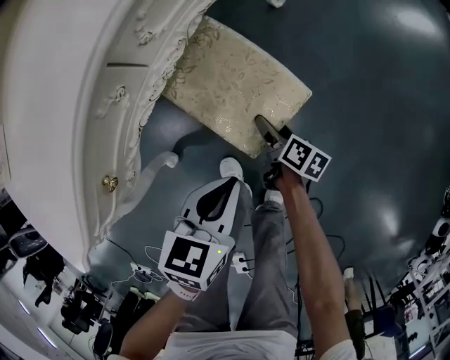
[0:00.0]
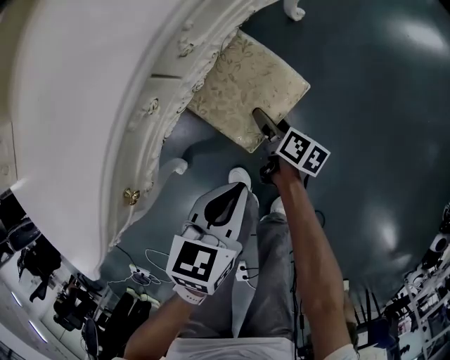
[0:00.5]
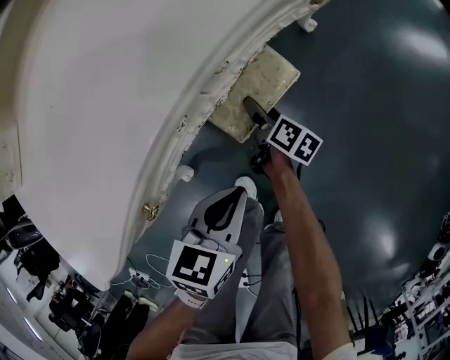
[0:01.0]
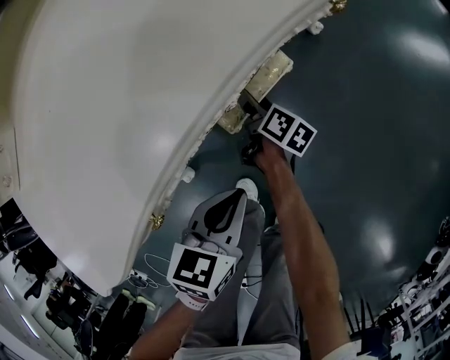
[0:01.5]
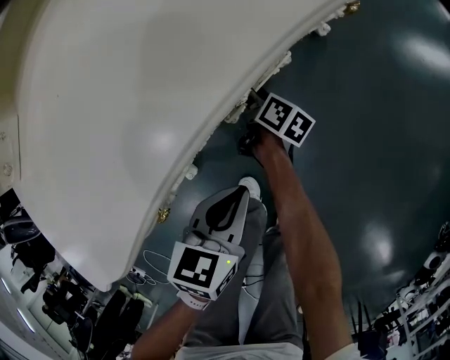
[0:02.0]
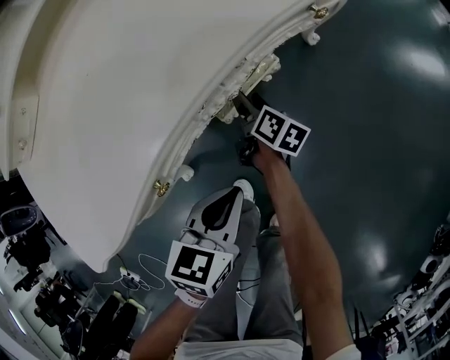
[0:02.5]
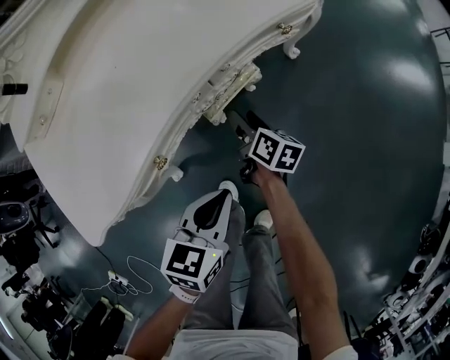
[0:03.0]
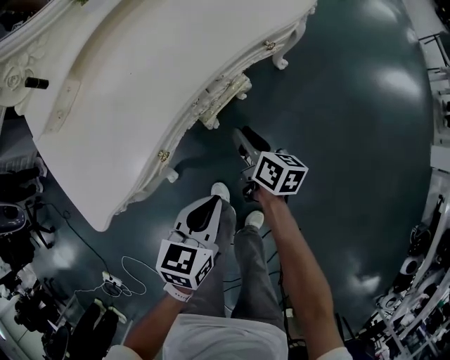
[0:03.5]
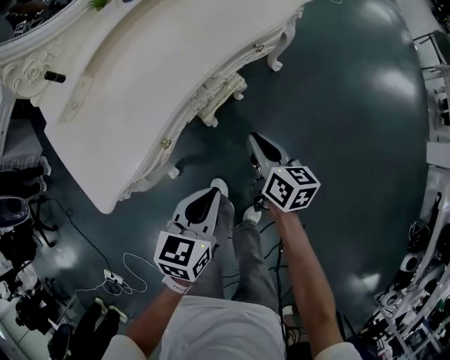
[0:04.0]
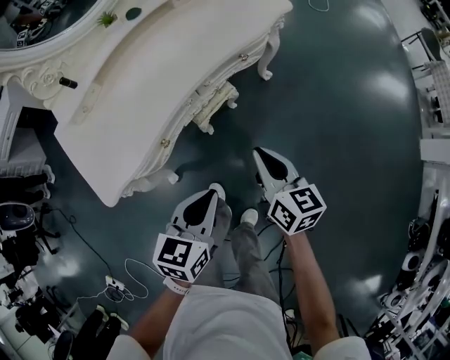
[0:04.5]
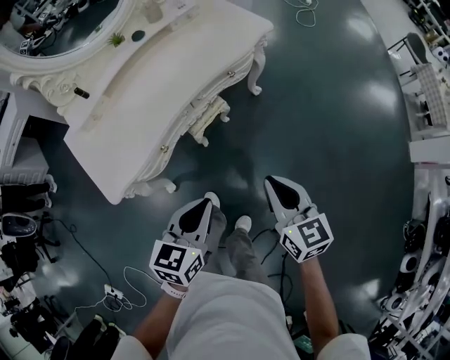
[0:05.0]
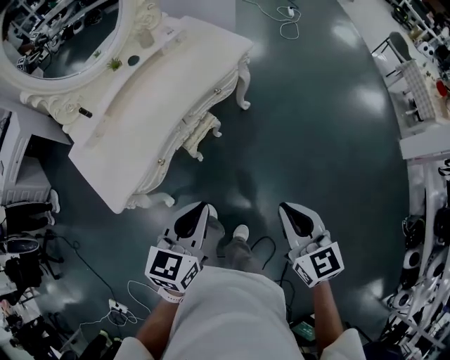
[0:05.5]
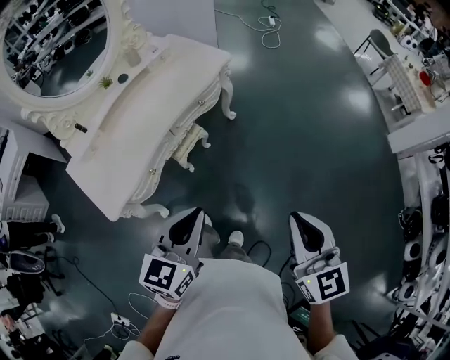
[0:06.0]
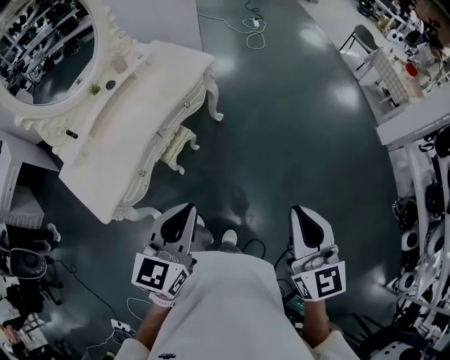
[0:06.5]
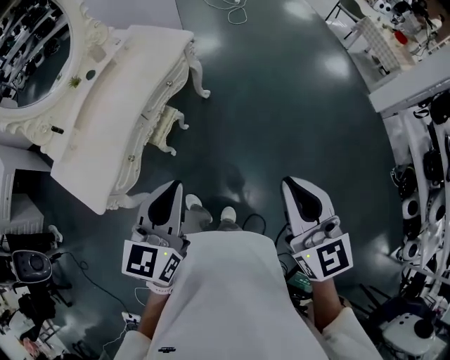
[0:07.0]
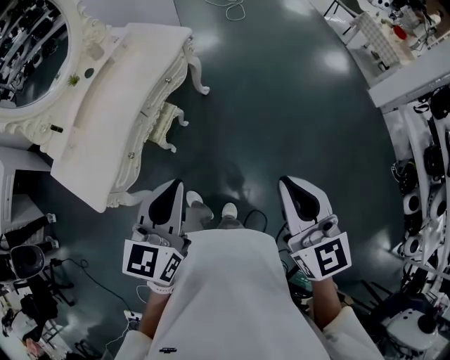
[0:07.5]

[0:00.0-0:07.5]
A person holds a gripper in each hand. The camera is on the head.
0.0 to 2.0 s: The right gripper travels to the left and forward by some 25 cm, while the left gripper shifts approximately 10 cm to the left.
2.0 to 4.0 s: The left gripper goes about 25 cm upward and backward. Meanwhile the right gripper moves upward and backward, some 40 cm, rotates about 30 degrees, and closes its fingers.
4.0 to 5.5 s: The left gripper goes approximately 20 cm upward; the right gripper heads upward, backward and to the right, covering roughly 40 cm, and rotates about 40 degrees.
5.5 to 7.5 s: The right gripper heads upward, to the right and backward, covering about 15 cm, while the left gripper goes some 10 cm upward and to the right.

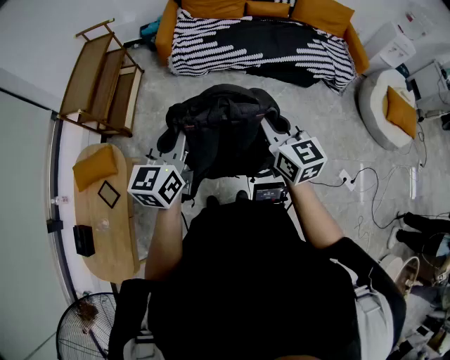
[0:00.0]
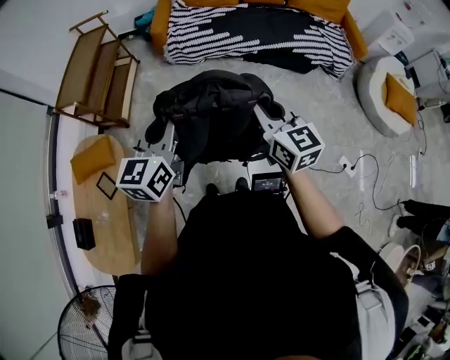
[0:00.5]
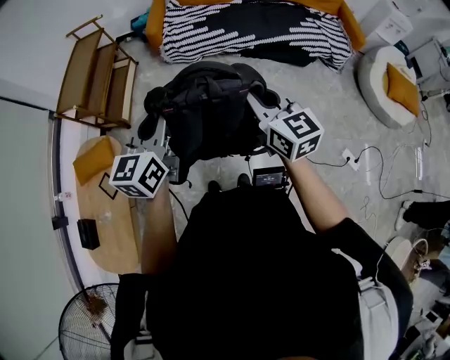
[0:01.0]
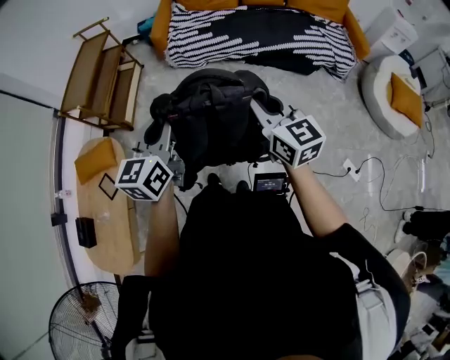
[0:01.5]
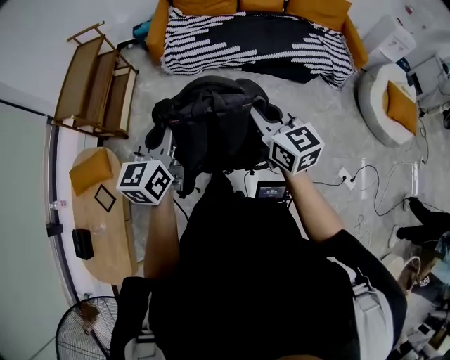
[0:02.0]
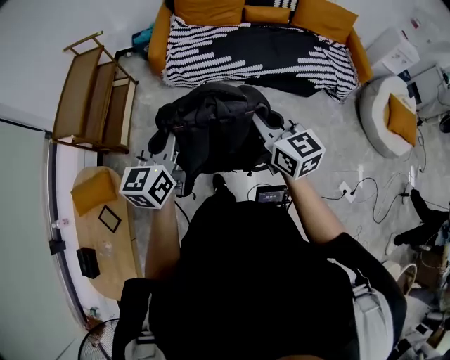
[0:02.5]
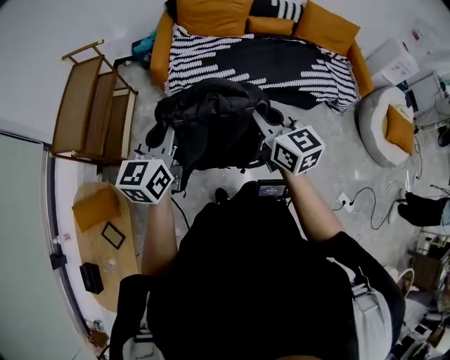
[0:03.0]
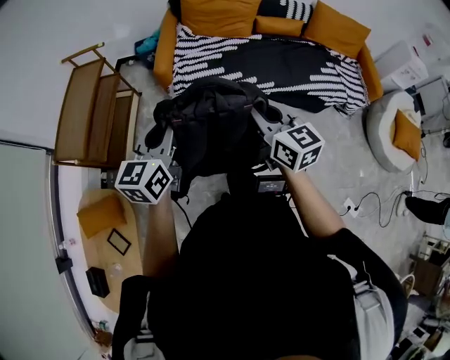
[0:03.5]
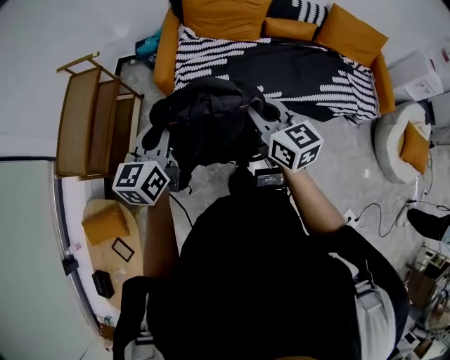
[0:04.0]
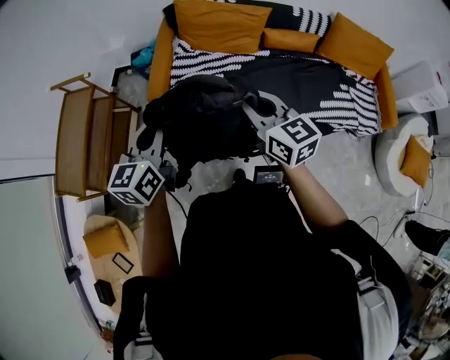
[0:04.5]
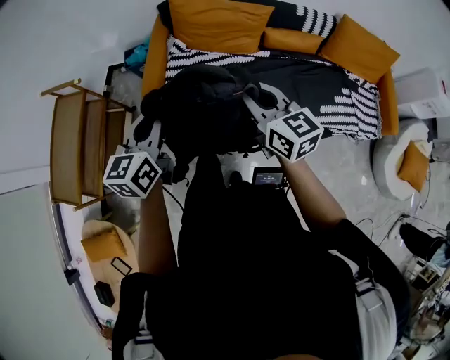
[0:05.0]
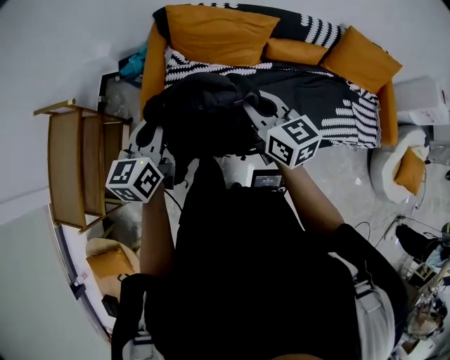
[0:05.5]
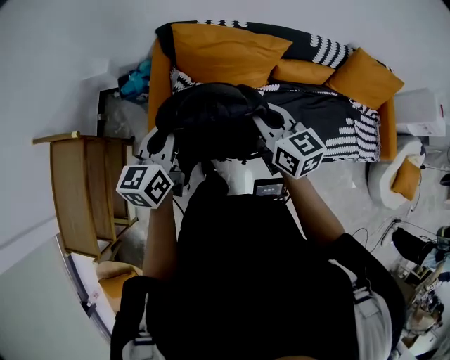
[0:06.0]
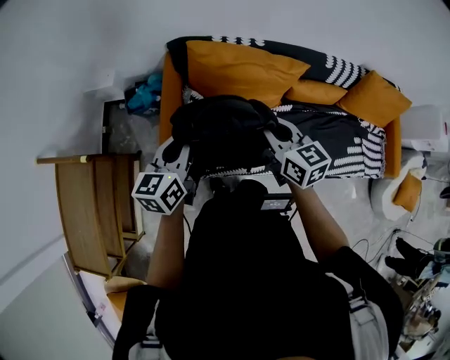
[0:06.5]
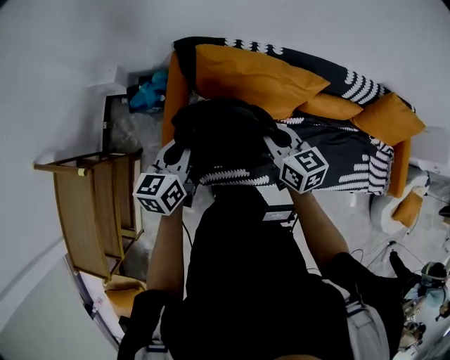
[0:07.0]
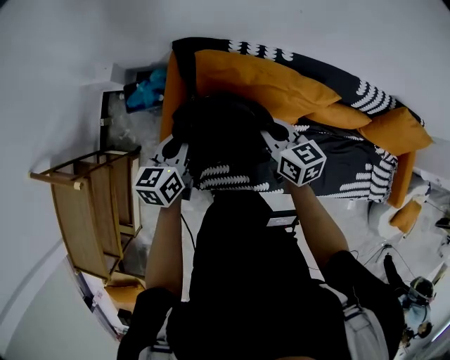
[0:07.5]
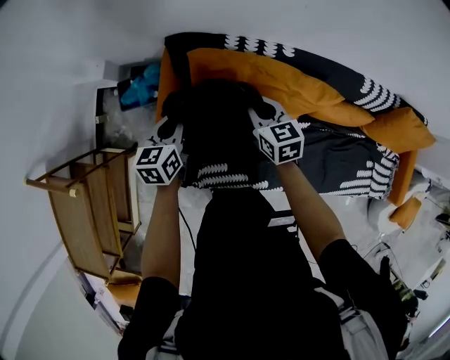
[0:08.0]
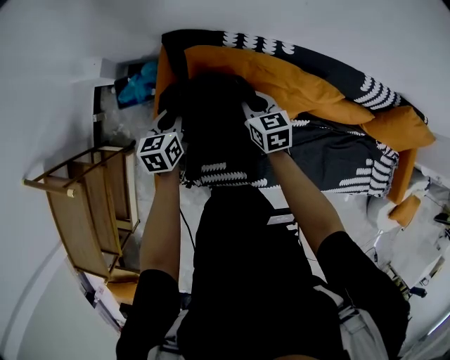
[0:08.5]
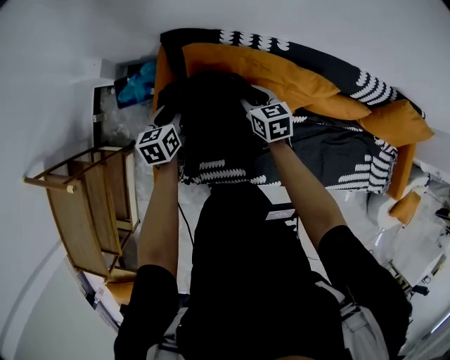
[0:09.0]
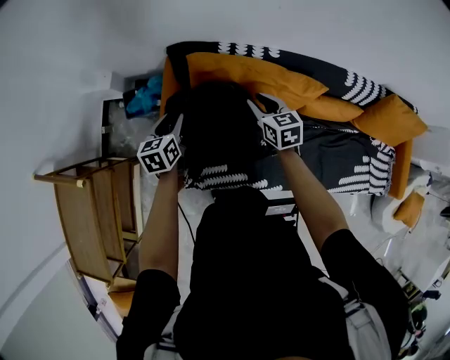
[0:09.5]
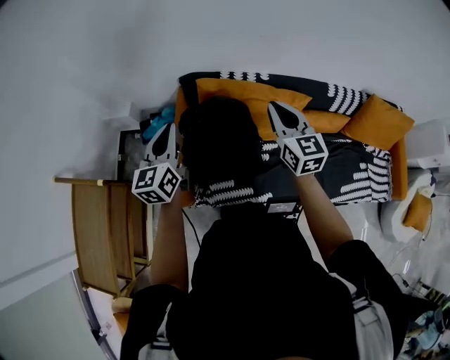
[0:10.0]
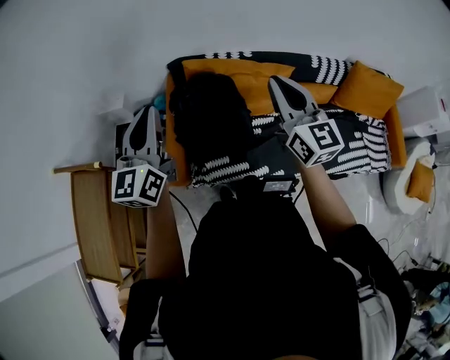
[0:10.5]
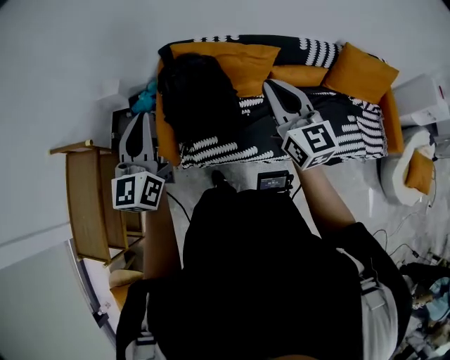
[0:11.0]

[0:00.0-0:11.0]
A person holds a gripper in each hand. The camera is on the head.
0.0 to 2.0 s: There are only small adjustments of the grippers.
2.0 to 3.5 s: Both grippers move forward, approximately 25 cm.
3.5 to 5.5 s: The pair of grippers is taken forward, approximately 40 cm.
5.5 to 7.5 s: Both grippers travel together forward and downward, some 40 cm.
7.5 to 9.0 s: The grippers both shift downward and forward by about 15 cm. The left gripper opens its fingers; the right gripper opens.
9.0 to 11.0 s: Both grippers move upward and backward, some 50 cm. The right gripper tilts its fingers approximately 40 degrees upward, and closes. The left gripper points its fingers roughly 40 degrees further upward, and closes up.

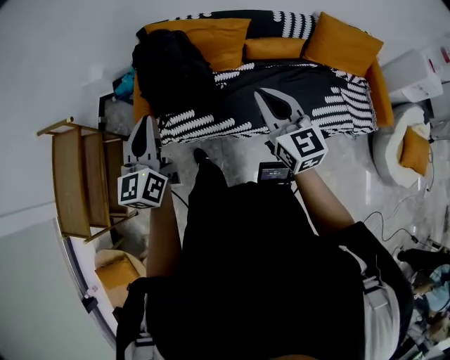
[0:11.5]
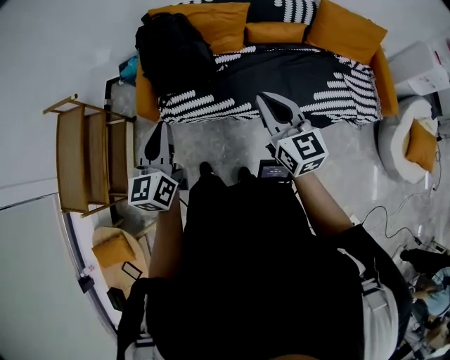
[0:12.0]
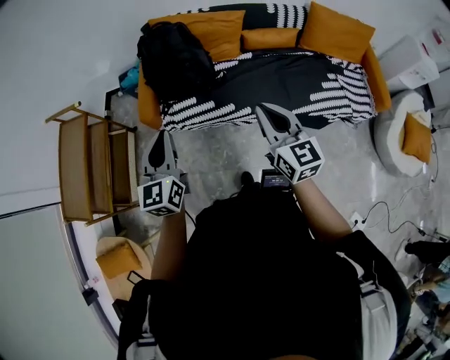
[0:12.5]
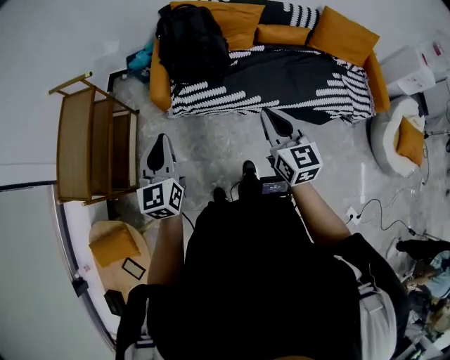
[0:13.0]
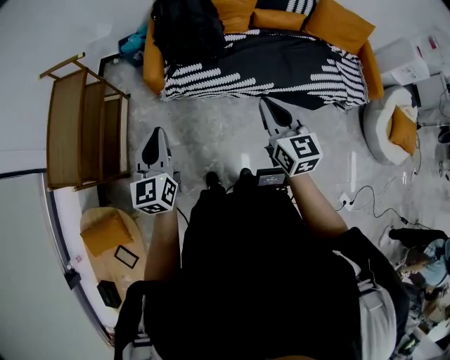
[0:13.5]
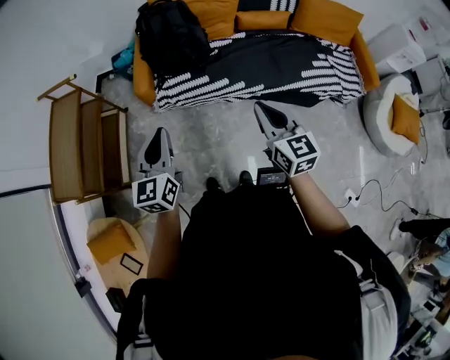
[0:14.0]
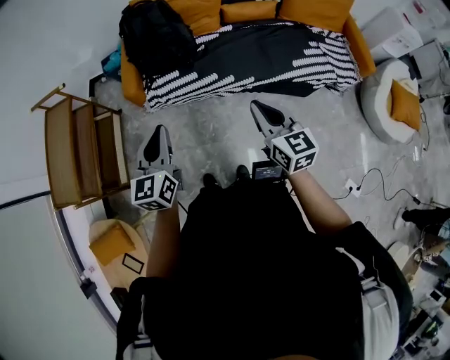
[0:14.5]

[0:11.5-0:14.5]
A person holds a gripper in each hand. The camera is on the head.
11.5 to 13.0 s: Both grippers move backward and to the left, some 25 cm.
13.0 to 14.5 s: The left gripper goes some 10 cm to the right, while the right gripper moves to the right and backward, approximately 10 cm.

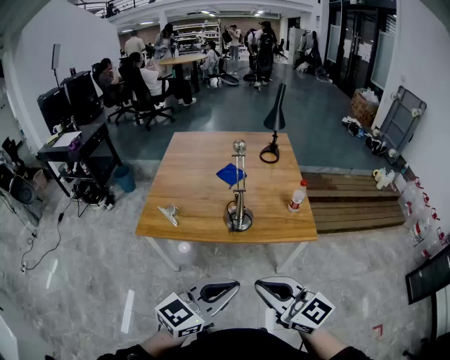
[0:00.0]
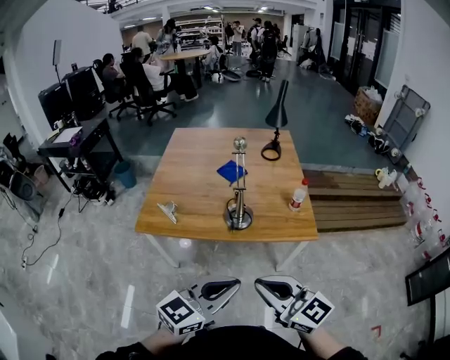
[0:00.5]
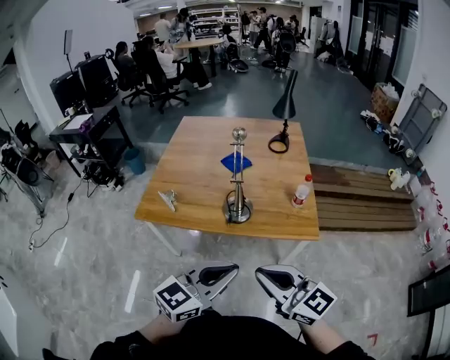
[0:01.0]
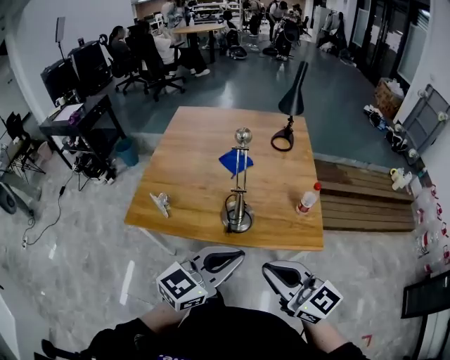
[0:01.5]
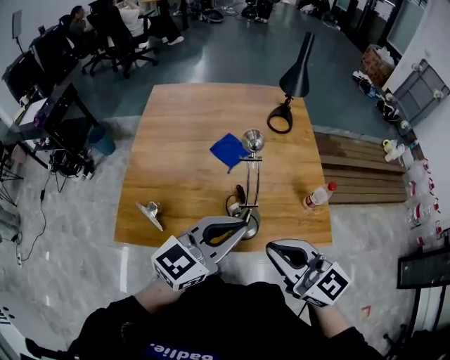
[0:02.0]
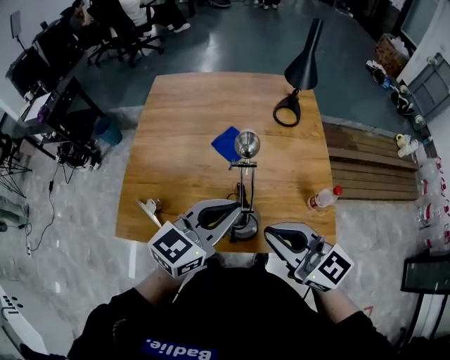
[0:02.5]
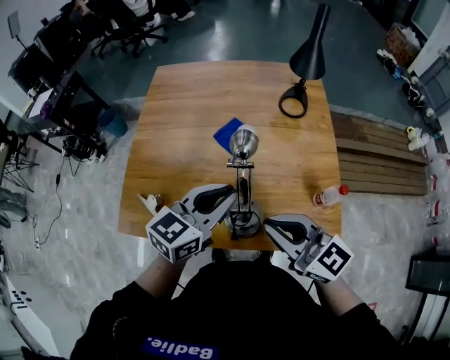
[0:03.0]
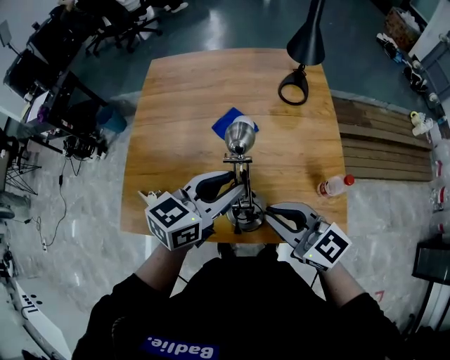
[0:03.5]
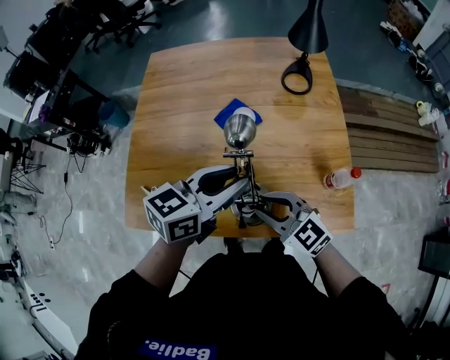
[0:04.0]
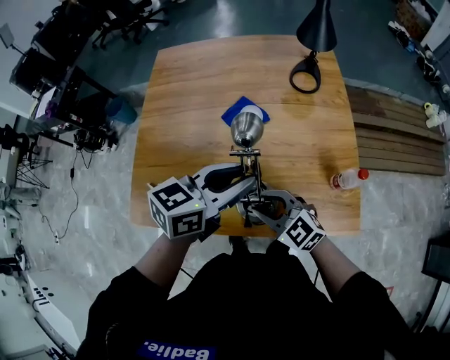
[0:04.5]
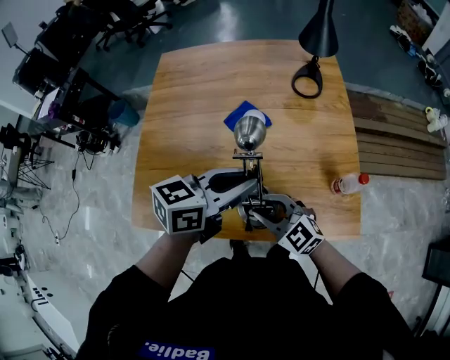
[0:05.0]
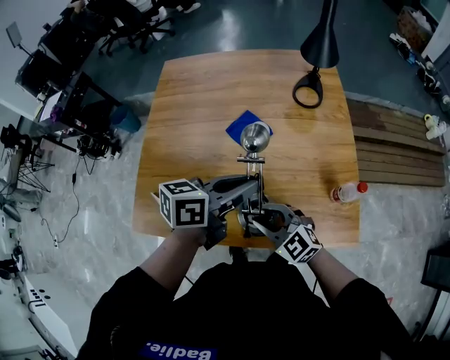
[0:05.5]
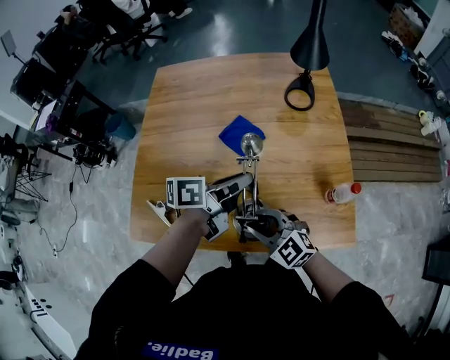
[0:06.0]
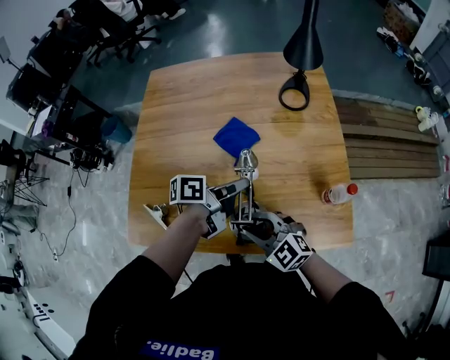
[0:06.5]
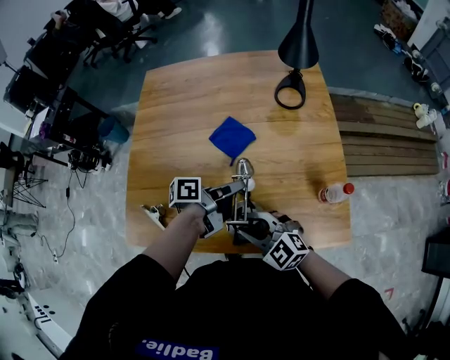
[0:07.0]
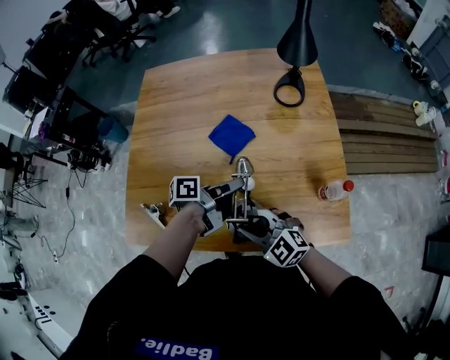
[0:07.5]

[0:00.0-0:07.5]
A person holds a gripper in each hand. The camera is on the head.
0.0 to 2.0 s: The two grippers go approximately 35 cm forward.
2.0 to 4.0 s: The right gripper moves downward and forward, some 20 cm, and rotates roughly 20 degrees, while the left gripper travels forward and downward by about 15 cm, rotates roughly 20 degrees, and opens.
4.0 to 5.5 s: The left gripper swivels approximately 20 degrees.
5.5 to 7.5 s: The left gripper shifts some 15 cm downward, and twists roughly 40 degrees counterclockwise, seen from behind.
